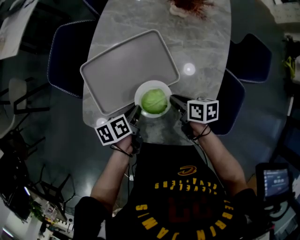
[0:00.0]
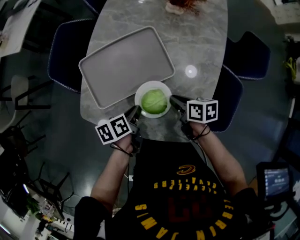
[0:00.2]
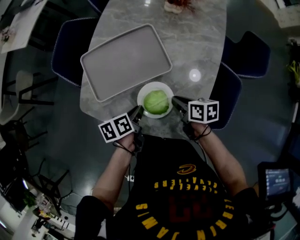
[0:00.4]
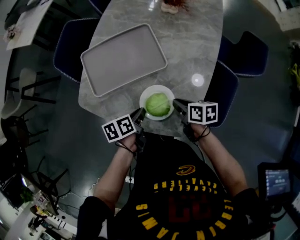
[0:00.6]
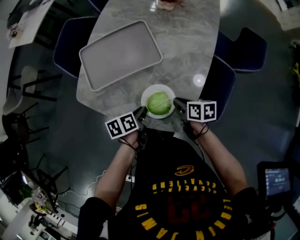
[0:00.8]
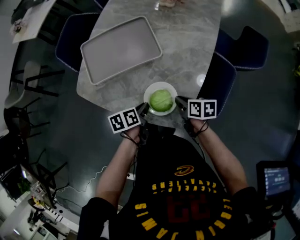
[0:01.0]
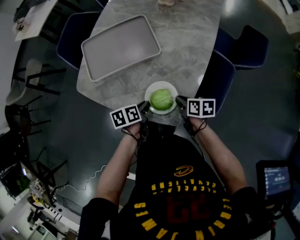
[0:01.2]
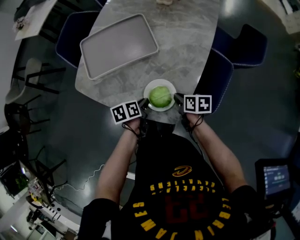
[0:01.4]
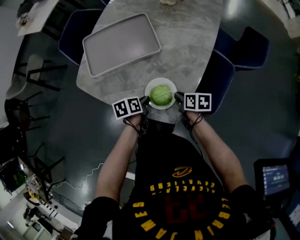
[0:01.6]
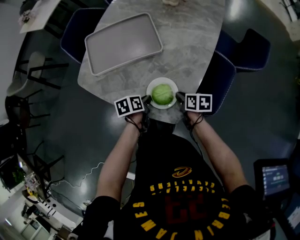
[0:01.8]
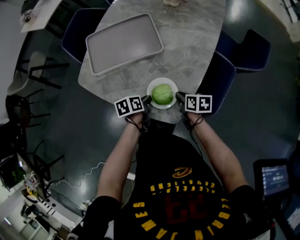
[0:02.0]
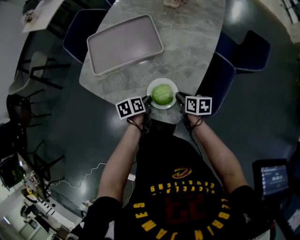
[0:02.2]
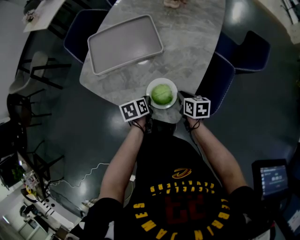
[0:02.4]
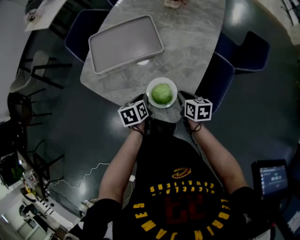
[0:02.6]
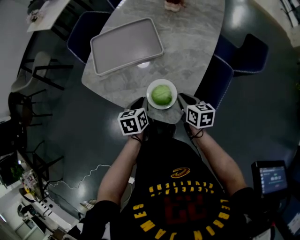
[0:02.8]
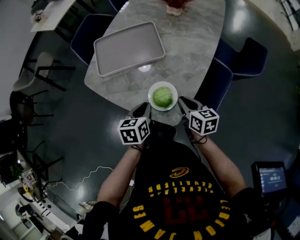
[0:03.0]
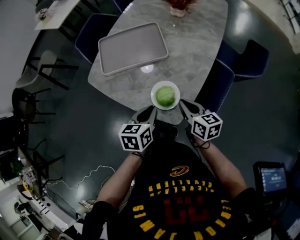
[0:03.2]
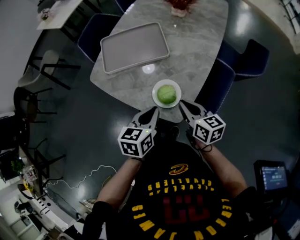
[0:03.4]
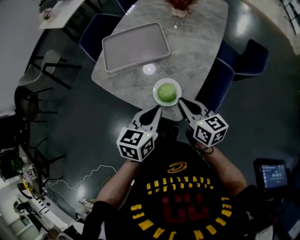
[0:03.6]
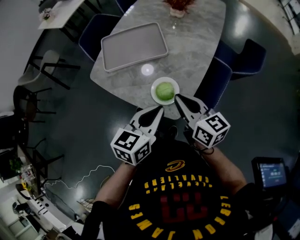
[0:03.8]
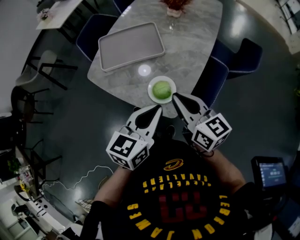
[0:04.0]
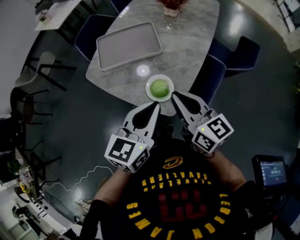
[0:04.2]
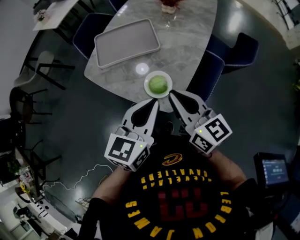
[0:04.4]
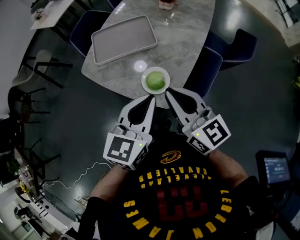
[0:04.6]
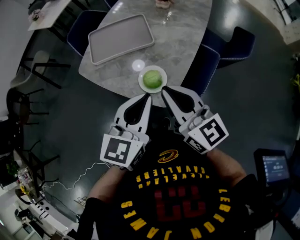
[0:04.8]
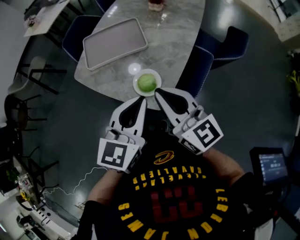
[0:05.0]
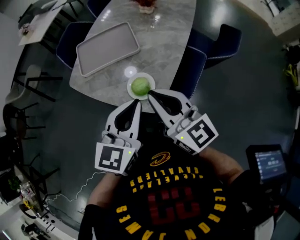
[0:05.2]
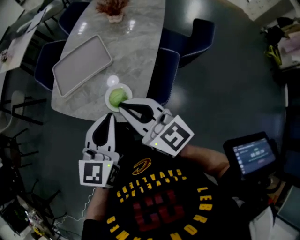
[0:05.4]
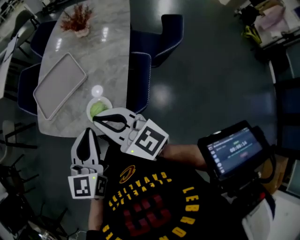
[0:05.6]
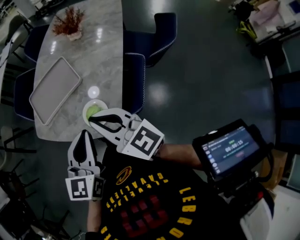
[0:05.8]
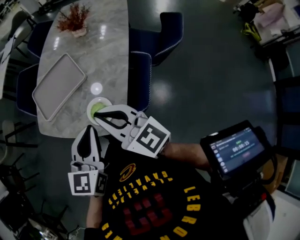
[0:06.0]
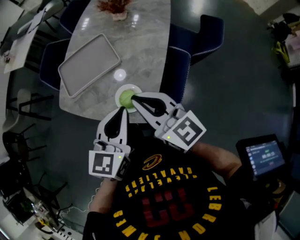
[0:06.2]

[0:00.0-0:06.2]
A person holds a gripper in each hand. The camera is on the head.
0:00.0 to 0:01.6: The grippers both shift backward, to the right and downward by some 20 cm.
0:01.6 to 0:03.2: The grippers both shift upward by about 15 cm. The left gripper rotates about 30 degrees. Meanwhile the right gripper changes its angle by some 30 degrees.
0:03.2 to 0:04.6: The two grippers go about 20 cm upward. The right gripper rotates some 30 degrees. The left gripper rotates roughly 30 degrees.
0:04.6 to 0:06.2: The two grippers go approximately 10 cm to the right and forward.

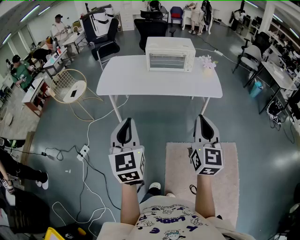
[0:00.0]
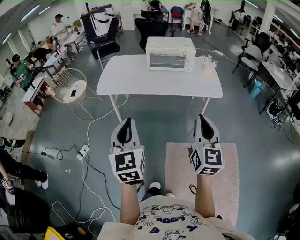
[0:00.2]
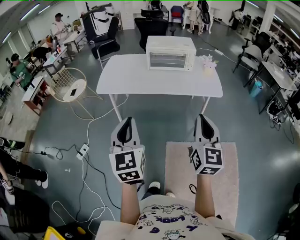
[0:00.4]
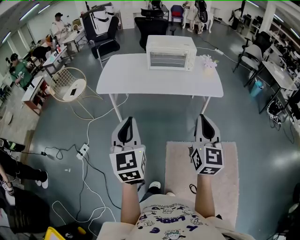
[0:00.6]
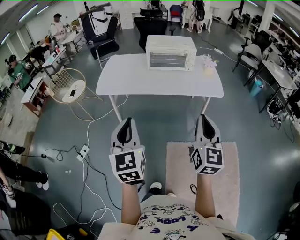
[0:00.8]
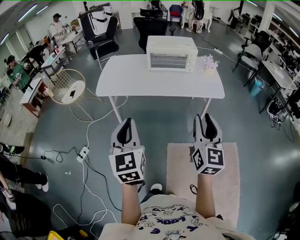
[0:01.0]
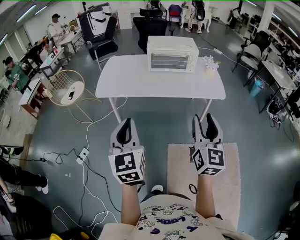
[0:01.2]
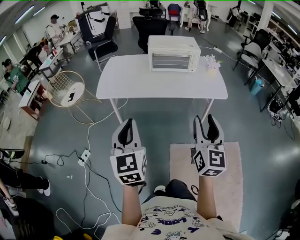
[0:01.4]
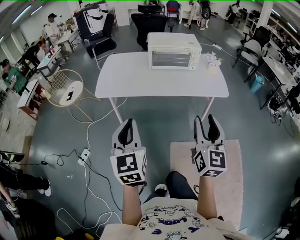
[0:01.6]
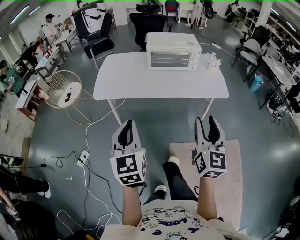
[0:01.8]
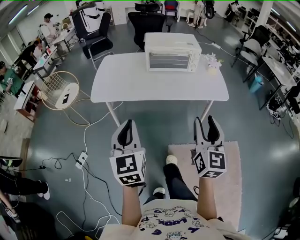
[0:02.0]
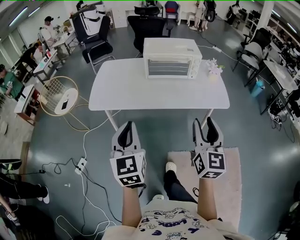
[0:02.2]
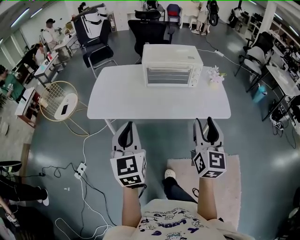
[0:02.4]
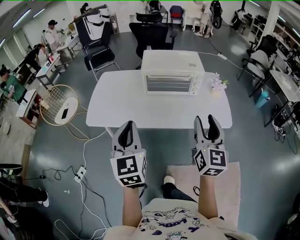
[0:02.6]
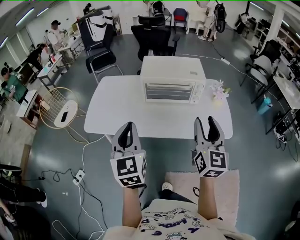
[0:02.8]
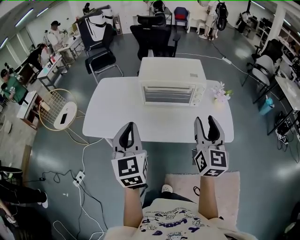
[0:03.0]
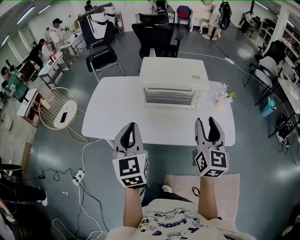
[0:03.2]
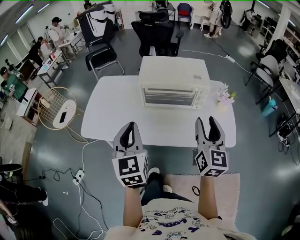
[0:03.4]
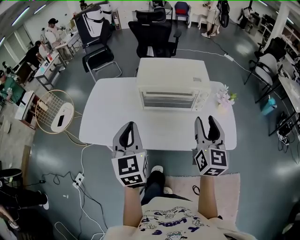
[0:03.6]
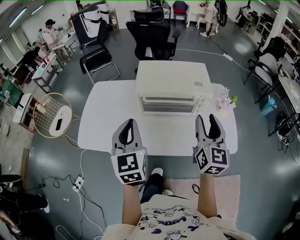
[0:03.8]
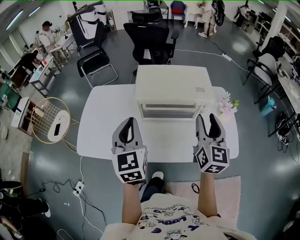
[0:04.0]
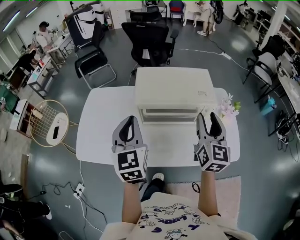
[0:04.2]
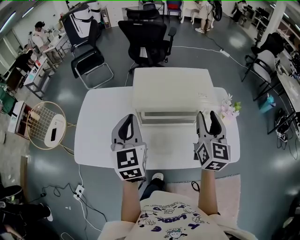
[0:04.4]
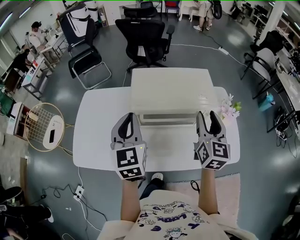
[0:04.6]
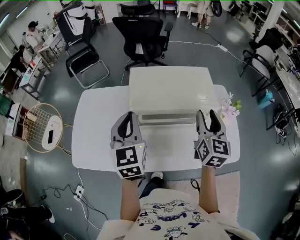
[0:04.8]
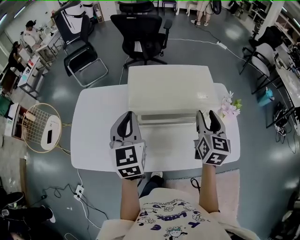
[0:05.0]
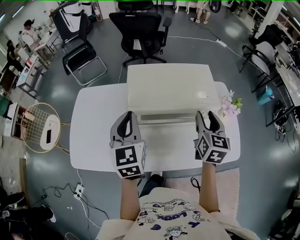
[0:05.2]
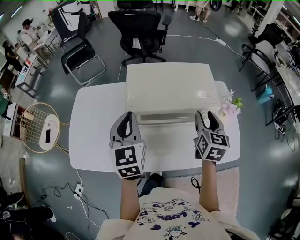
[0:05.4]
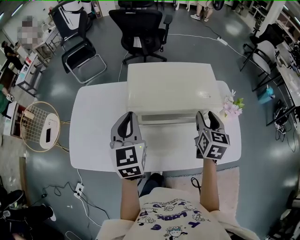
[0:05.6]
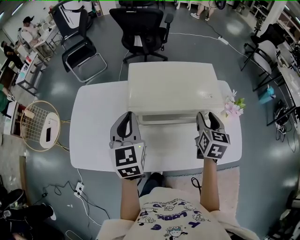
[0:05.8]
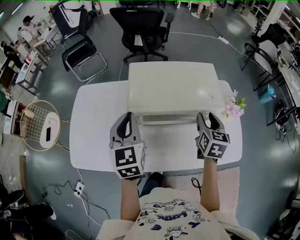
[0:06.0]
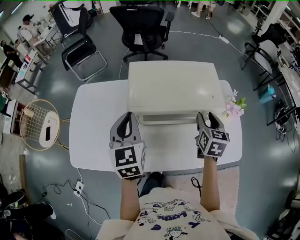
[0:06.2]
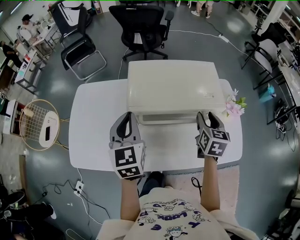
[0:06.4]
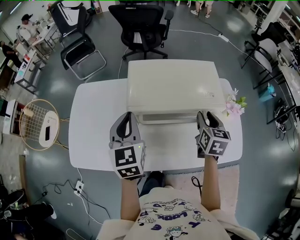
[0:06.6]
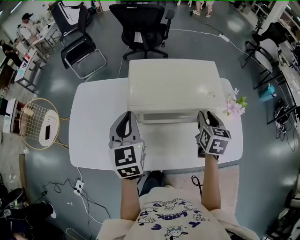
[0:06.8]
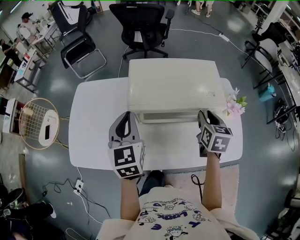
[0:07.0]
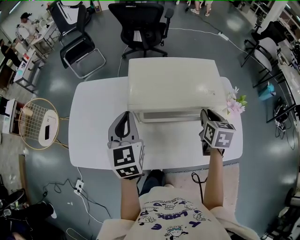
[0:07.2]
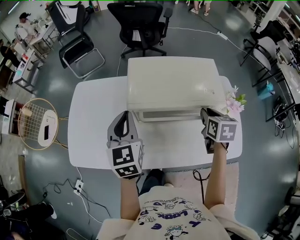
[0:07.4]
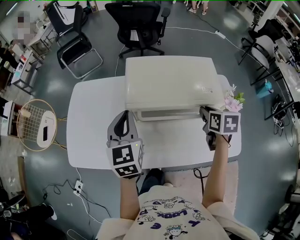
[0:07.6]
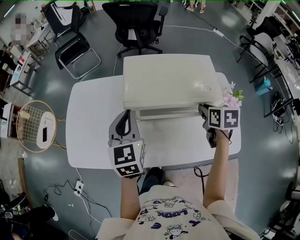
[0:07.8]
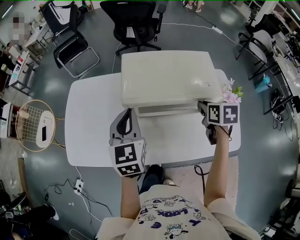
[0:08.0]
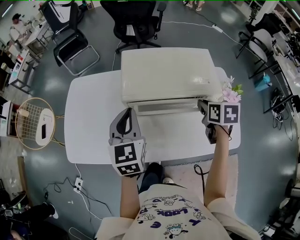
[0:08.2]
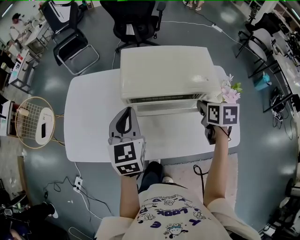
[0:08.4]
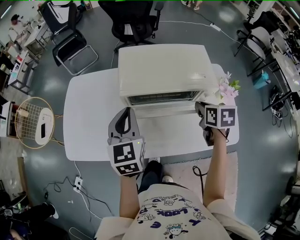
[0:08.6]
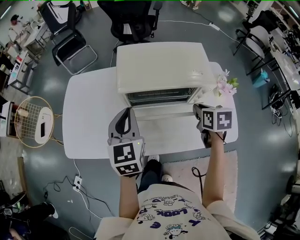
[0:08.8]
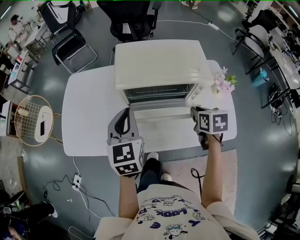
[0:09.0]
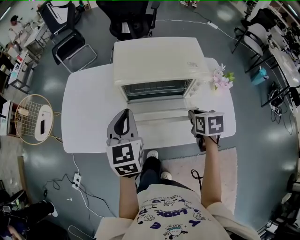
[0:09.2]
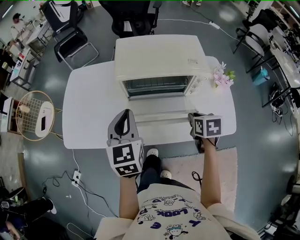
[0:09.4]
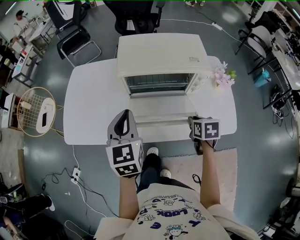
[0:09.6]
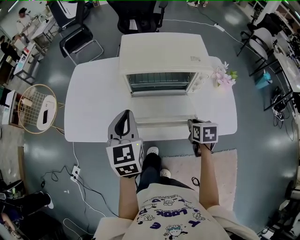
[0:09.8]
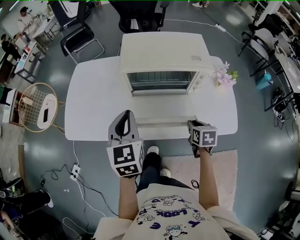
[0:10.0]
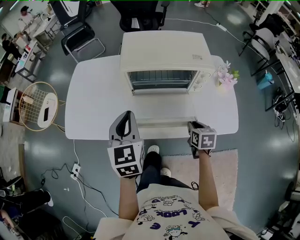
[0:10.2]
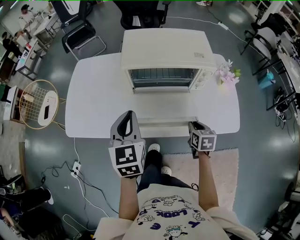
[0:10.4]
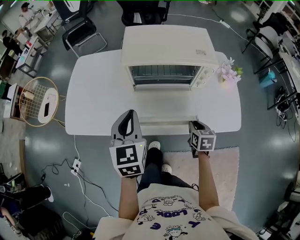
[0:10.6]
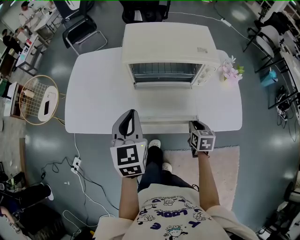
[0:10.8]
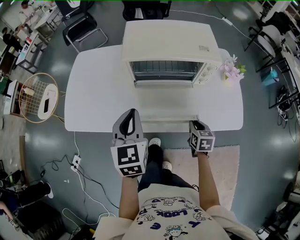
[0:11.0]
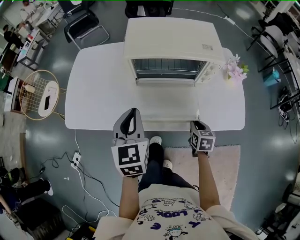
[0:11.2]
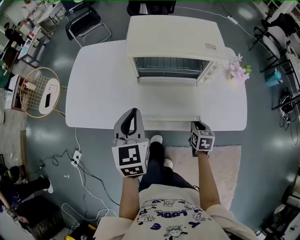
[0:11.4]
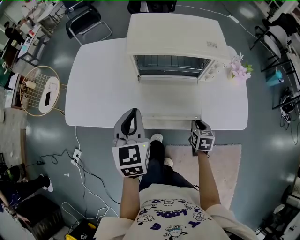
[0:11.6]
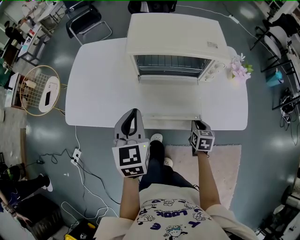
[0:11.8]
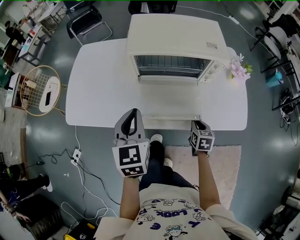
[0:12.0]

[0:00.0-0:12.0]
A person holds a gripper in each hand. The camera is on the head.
0:00.0 to 0:01.6: The right gripper goes approximately 10 cm forward, and opens up. The left gripper travels forward and to the left by approximately 10 cm.
0:01.6 to 0:03.0: The two grippers go some 35 cm forward.
0:03.0 to 0:04.4: Both grippers move forward, roughly 30 cm.
0:04.4 to 0:06.0: The left gripper moves forward and downward, some 10 cm. The right gripper heads downward and forward, covering some 15 cm, and rotates about 30 degrees.
0:06.0 to 0:07.6: The right gripper changes its angle by some 20 degrees, and closes up.
0:07.6 to 0:09.0: Both grippers travel together backward, some 10 cm.
0:09.0 to 0:10.4: The left gripper heads backward, covering roughly 10 cm; the right gripper is displaced downward and backward by about 15 cm.
0:10.4 to 0:12.0: The right gripper travels downward by some 10 cm.

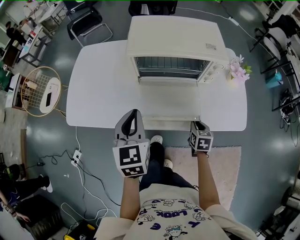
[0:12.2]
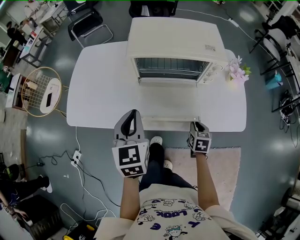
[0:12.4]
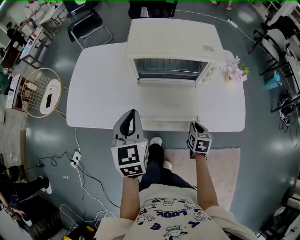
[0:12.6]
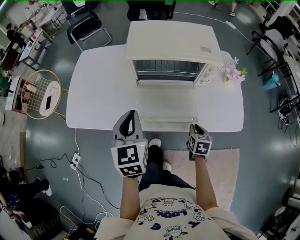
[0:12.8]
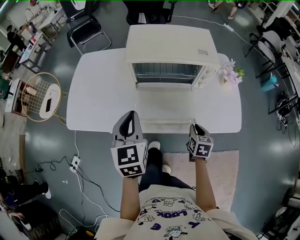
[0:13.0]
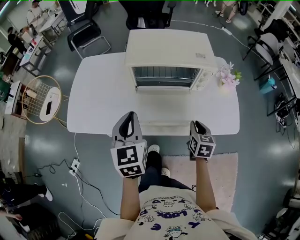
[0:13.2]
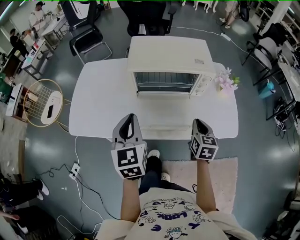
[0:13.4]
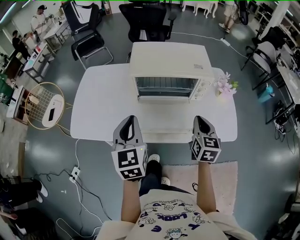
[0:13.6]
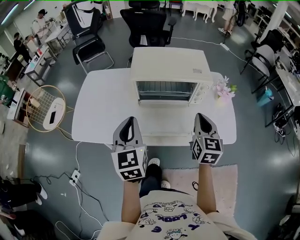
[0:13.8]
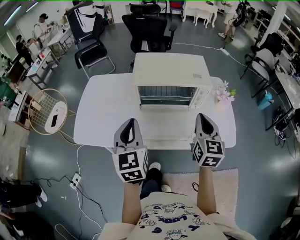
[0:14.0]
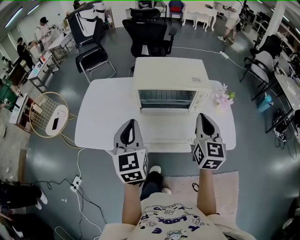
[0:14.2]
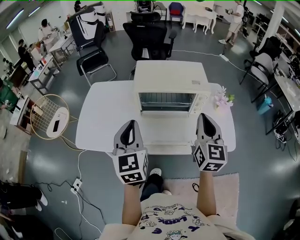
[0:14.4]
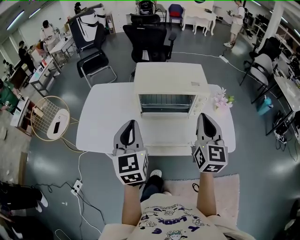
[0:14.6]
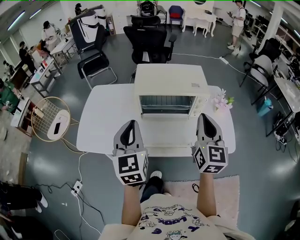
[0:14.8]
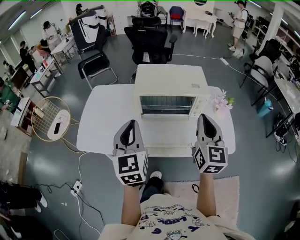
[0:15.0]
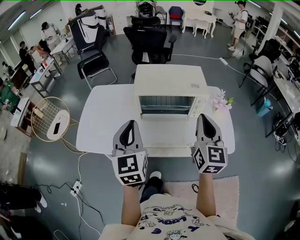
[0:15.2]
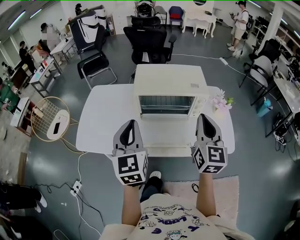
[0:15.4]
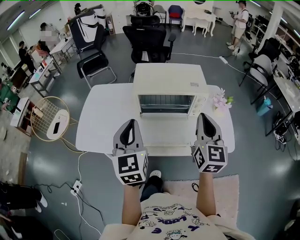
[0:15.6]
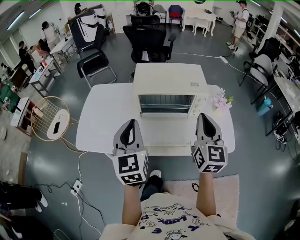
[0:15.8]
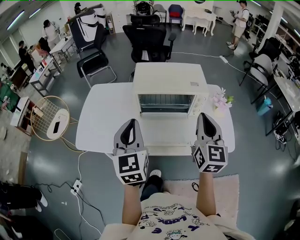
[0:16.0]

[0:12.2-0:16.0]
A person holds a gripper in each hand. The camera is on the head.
0:12.2 to 0:13.4: The right gripper travels upward by about 15 cm. The left gripper shifts about 5 cm upward.
0:13.4 to 0:14.8: The right gripper moves upward, about 25 cm, and angles its fingers upward, by some 30 degrees. Meanwhile the left gripper shifts about 10 cm upward.
0:14.8 to 0:16.0: Both grippers stay put.

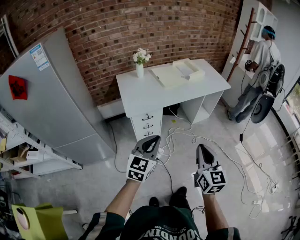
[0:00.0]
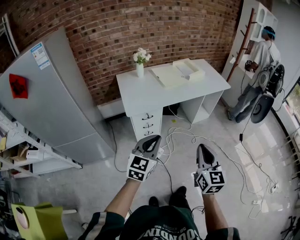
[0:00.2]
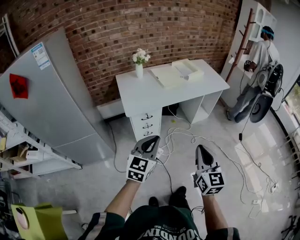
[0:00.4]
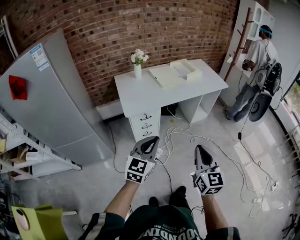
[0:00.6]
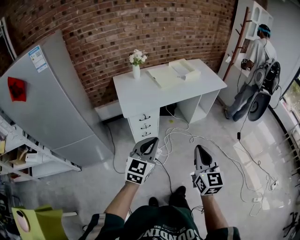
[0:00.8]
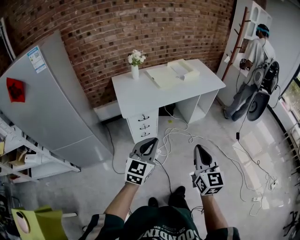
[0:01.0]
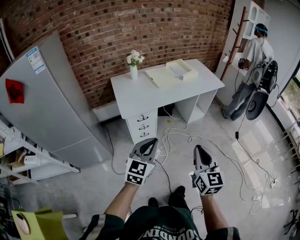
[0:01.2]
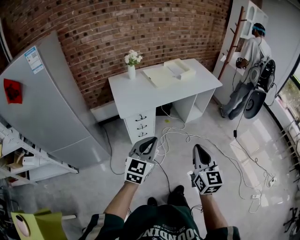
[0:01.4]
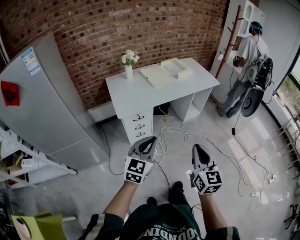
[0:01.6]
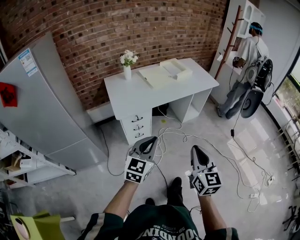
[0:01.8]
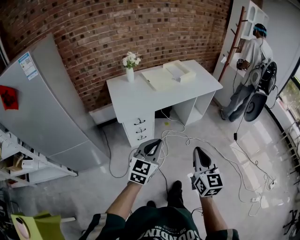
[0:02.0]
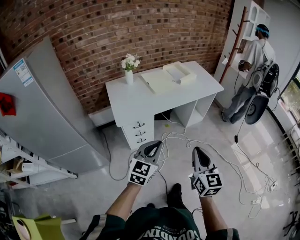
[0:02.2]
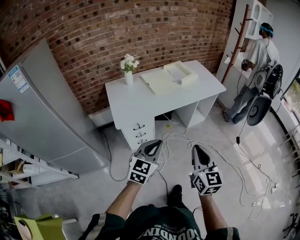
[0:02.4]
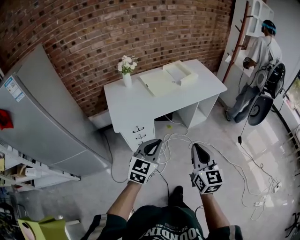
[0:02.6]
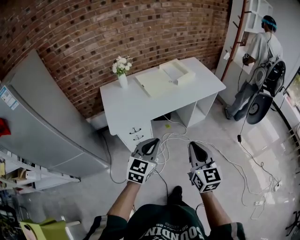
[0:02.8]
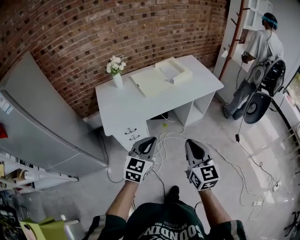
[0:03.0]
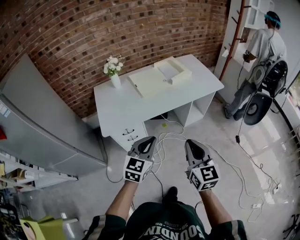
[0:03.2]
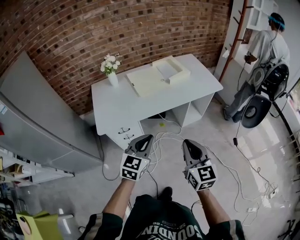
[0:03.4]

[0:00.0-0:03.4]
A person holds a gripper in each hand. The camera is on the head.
0:00.0 to 0:01.6: The grippers move only a little.
0:01.6 to 0:03.4: The two grippers go roughly 30 cm forward and to the right.
